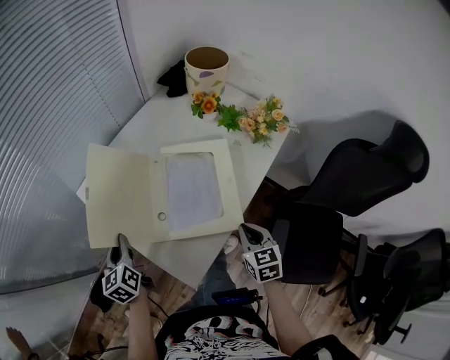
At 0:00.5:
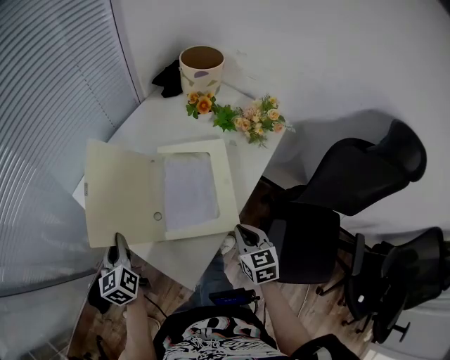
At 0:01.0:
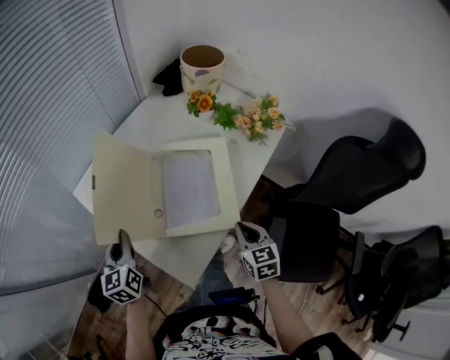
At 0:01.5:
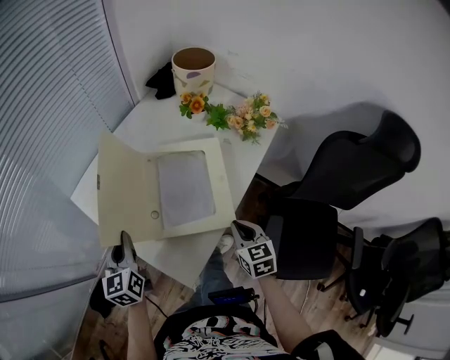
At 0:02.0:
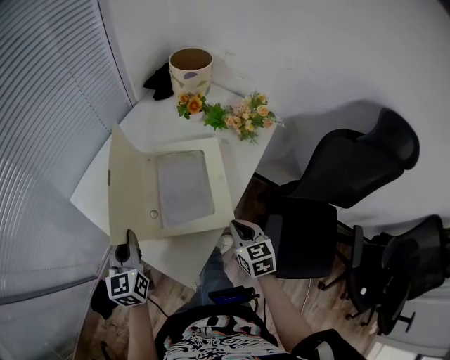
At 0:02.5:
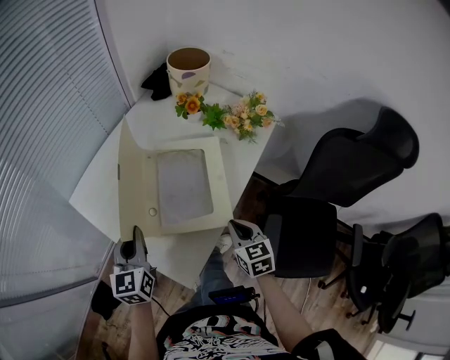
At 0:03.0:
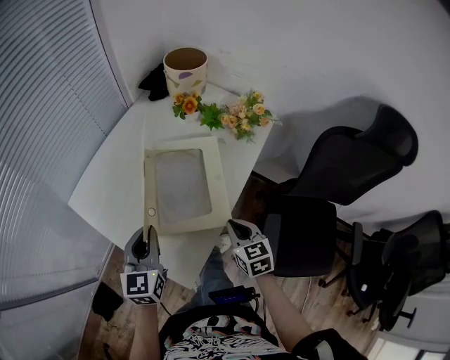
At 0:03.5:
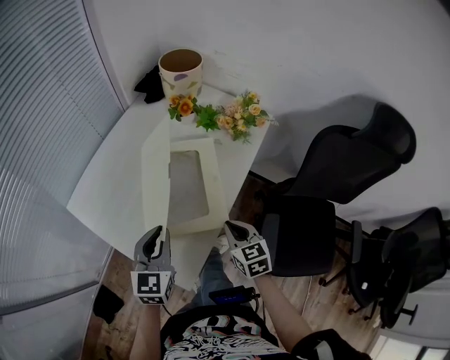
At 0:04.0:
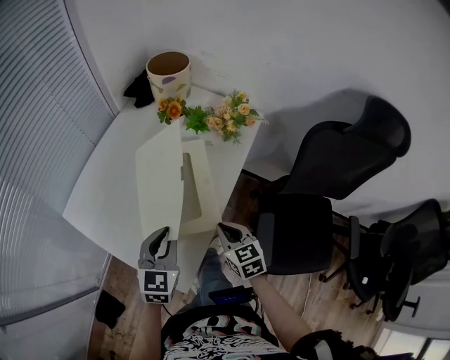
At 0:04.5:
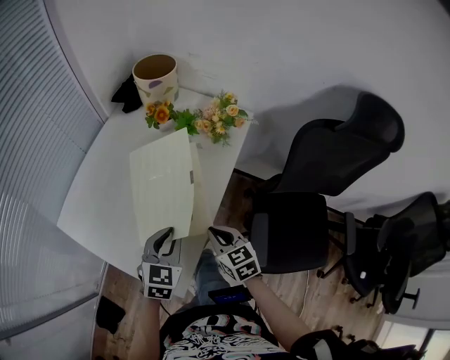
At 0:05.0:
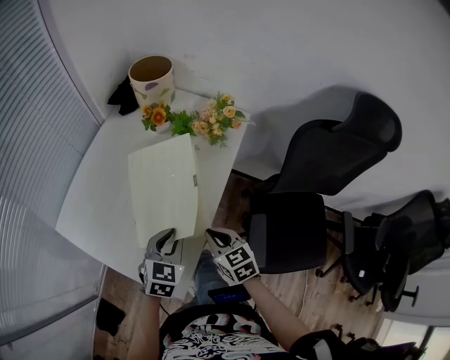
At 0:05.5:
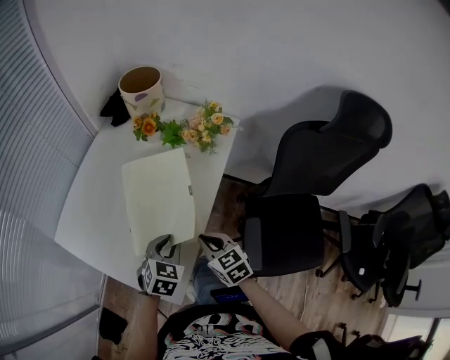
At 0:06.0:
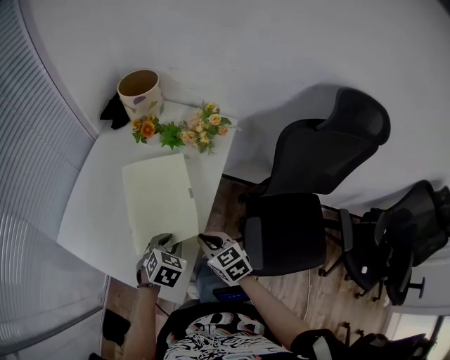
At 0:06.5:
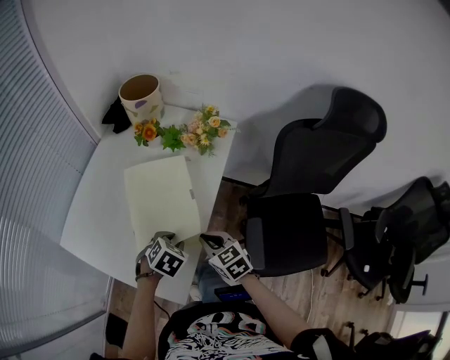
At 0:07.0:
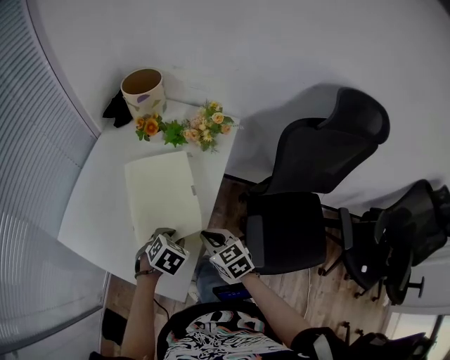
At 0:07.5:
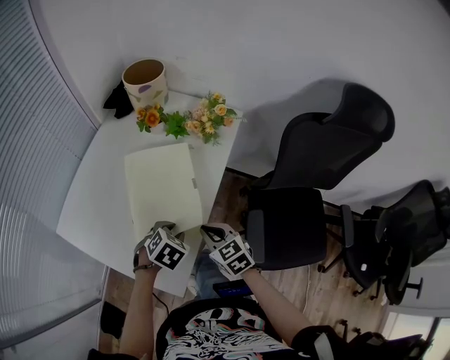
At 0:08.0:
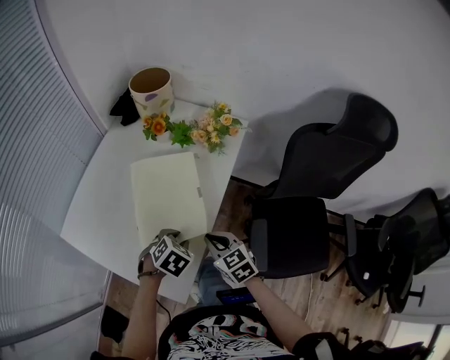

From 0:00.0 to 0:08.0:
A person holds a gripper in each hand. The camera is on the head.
From 0:00.0 to 0:02.0: The left gripper travels to the right by some 10 cm, and rotates some 20 degrees.
From 0:02.0 to 0:04.0: The left gripper goes roughly 15 cm to the right, and rotates about 30 degrees.
From 0:04.0 to 0:06.0: The left gripper goes roughly 10 cm downward and to the right, and angles its fingers downward, by some 30 degrees.
From 0:06.0 to 0:08.0: The grippers stay close to where they were, moving slightly.

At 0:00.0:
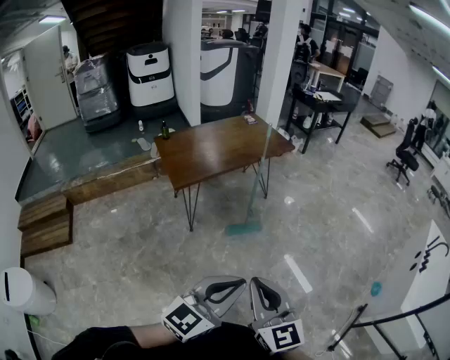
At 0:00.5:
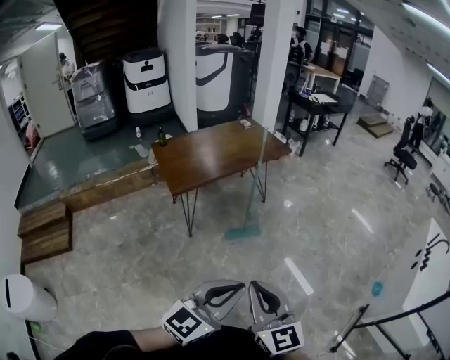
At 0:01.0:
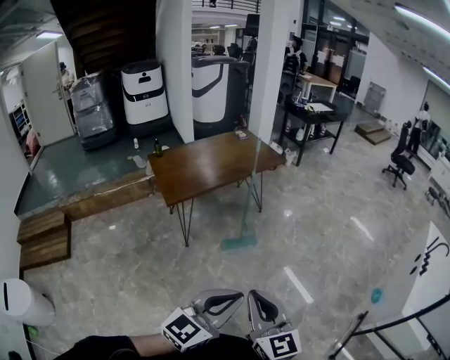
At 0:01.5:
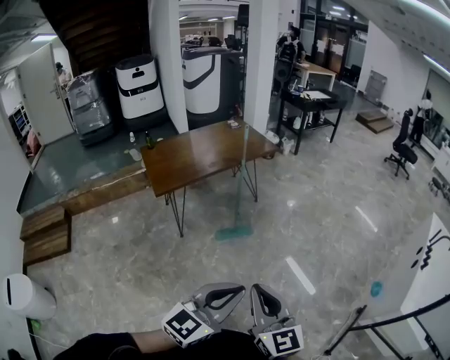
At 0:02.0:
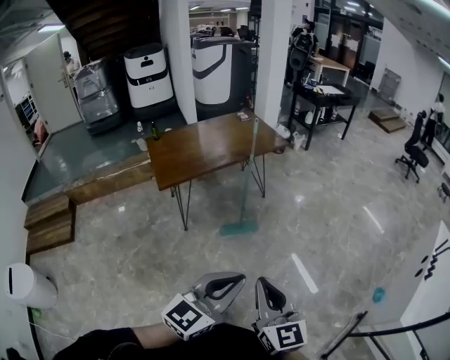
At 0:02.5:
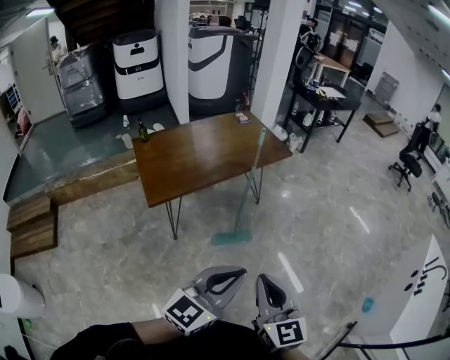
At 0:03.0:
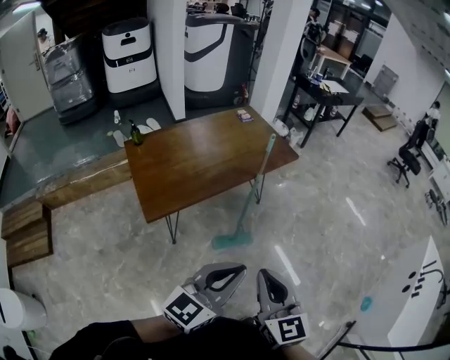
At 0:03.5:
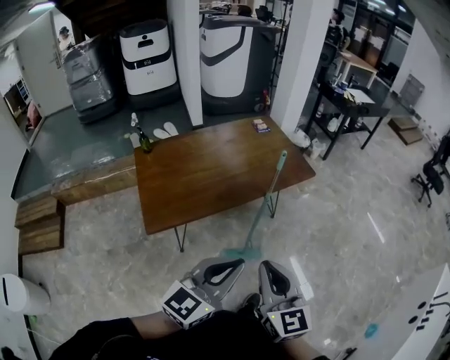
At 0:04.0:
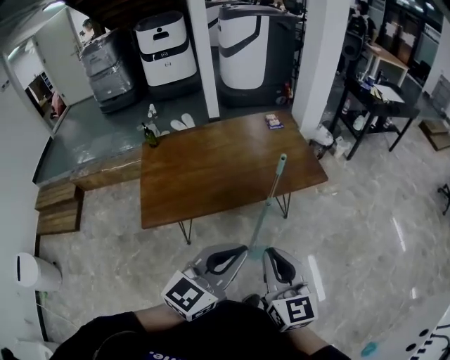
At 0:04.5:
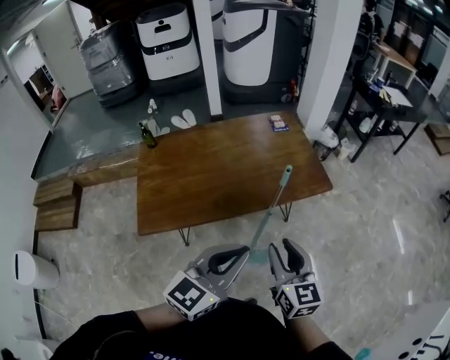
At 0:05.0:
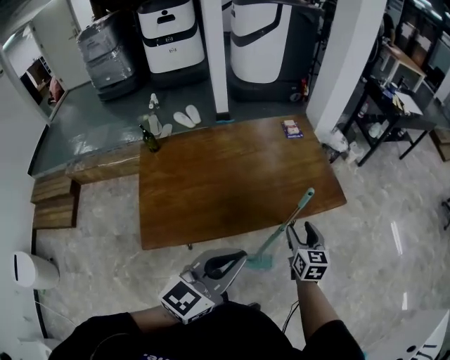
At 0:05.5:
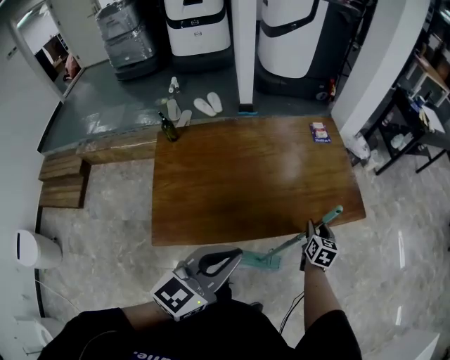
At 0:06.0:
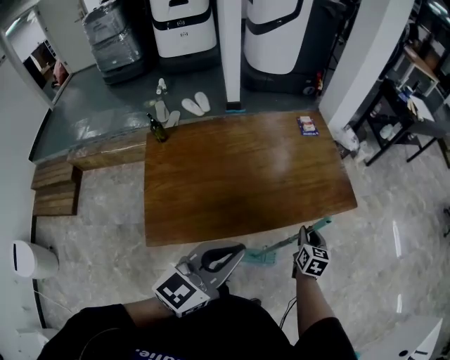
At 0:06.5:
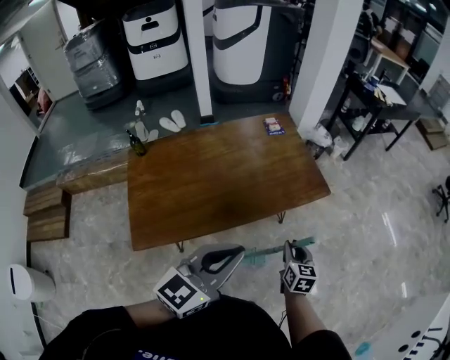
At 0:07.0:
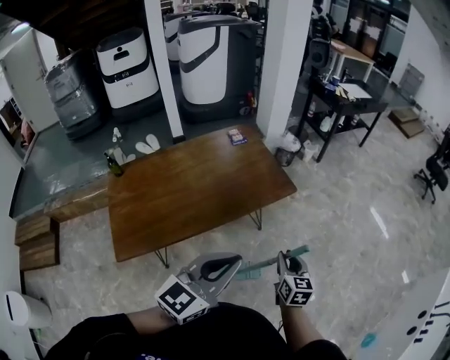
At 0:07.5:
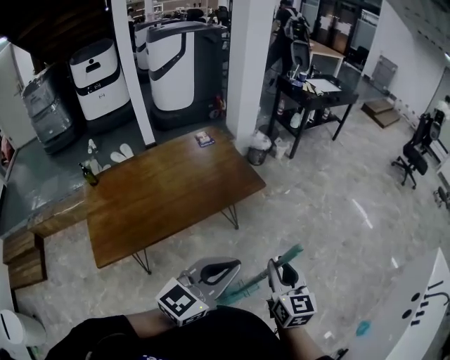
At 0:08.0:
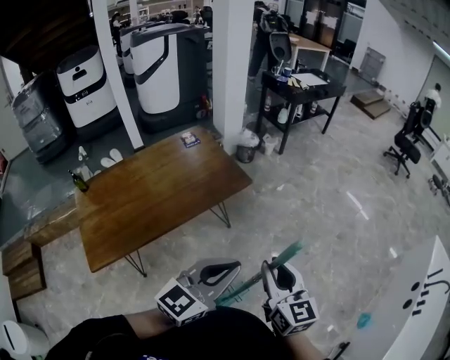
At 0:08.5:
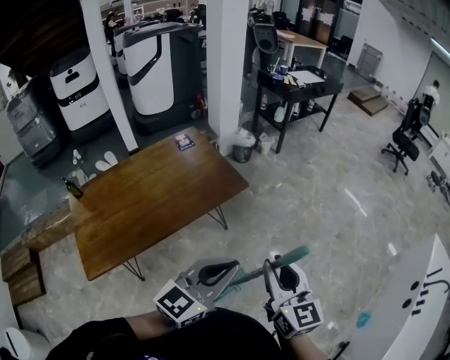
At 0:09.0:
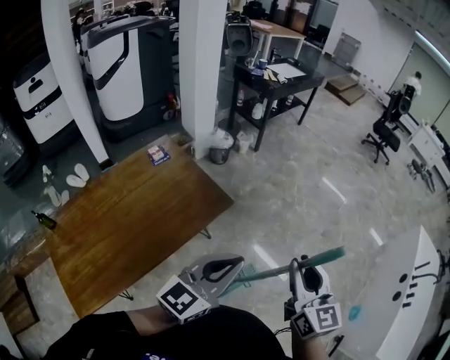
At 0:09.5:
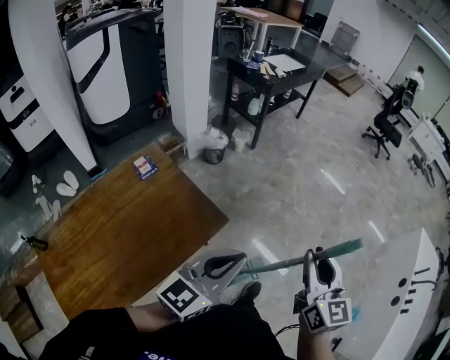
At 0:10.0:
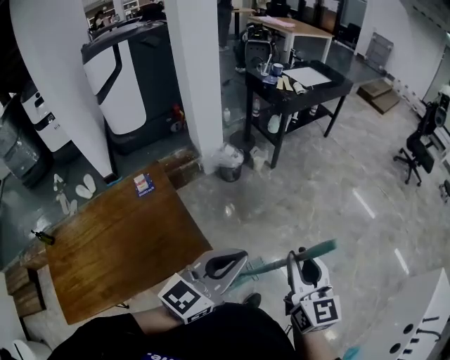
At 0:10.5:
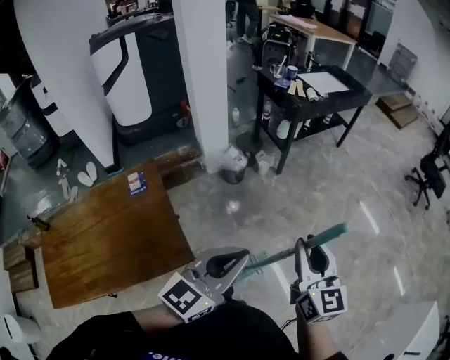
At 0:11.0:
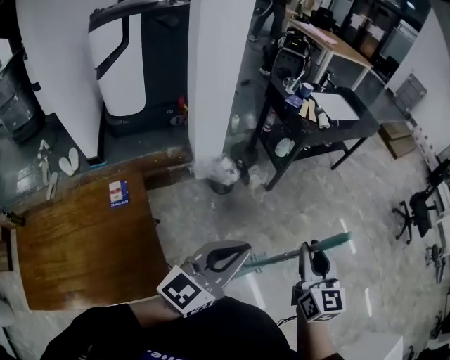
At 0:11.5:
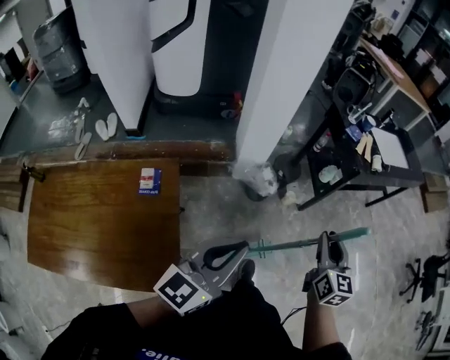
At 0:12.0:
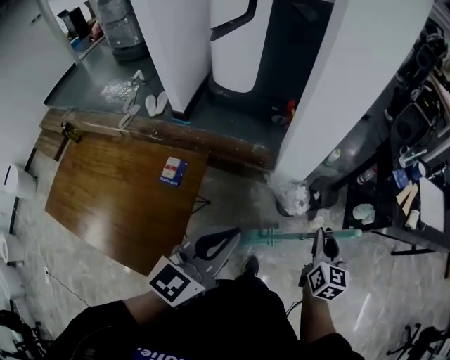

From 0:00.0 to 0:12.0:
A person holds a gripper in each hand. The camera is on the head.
From 0:00.0 to 0:02.0: The two grippers go about 15 cm to the right and forward.
From 0:02.0 to 0:04.0: Both grippers are carried forward, about 50 cm.
From 0:04.0 to 0:06.0: The right gripper moves forward and downward, about 40 cm, angles its fingers downward, by about 30 degrees, and opens and closes again, while the left gripper shifts approximately 20 cm to the left and forward.
From 0:06.0 to 0:08.0: The right gripper shifts roughly 40 cm to the right, upward and backward, and rotates about 30 degrees, while the left gripper shifts some 35 cm to the right, and rotates about 30 degrees.
From 0:08.0 to 0:10.0: The two grippers travel together, forward, some 50 cm.
From 0:10.0 to 0:12.0: The two grippers travel together, approximately 50 cm. The left gripper changes its angle by about 50 degrees. The right gripper swivels some 30 degrees.

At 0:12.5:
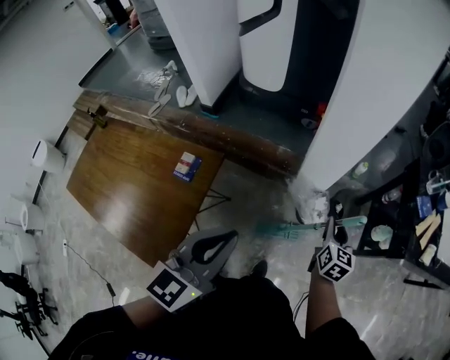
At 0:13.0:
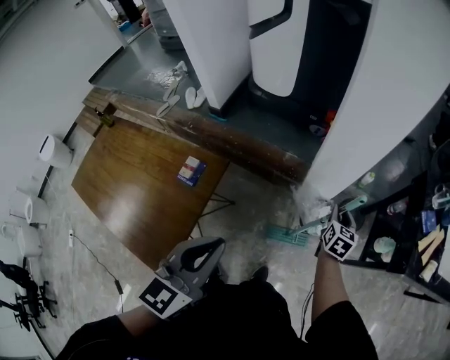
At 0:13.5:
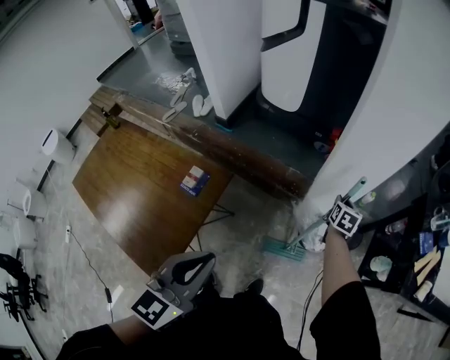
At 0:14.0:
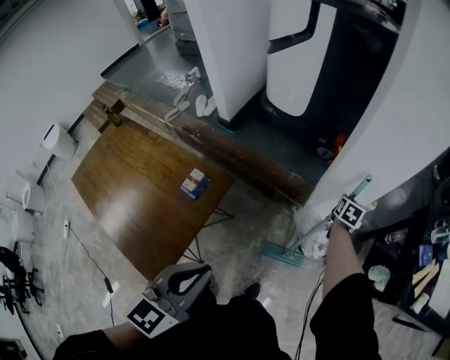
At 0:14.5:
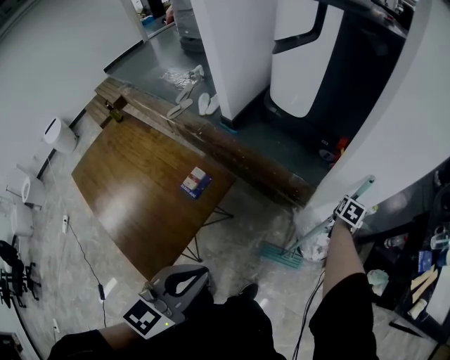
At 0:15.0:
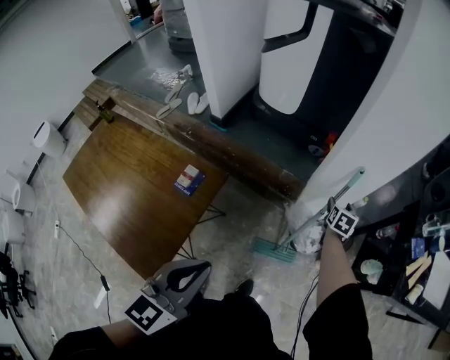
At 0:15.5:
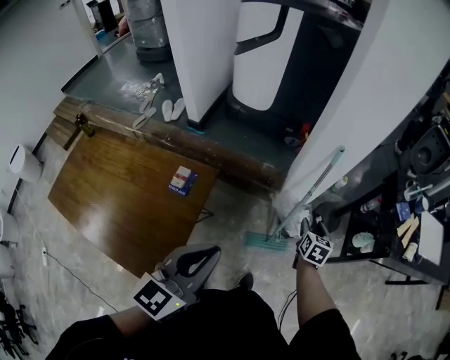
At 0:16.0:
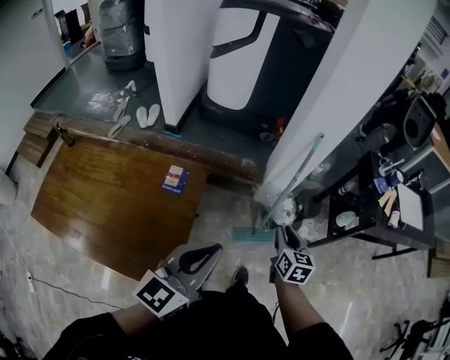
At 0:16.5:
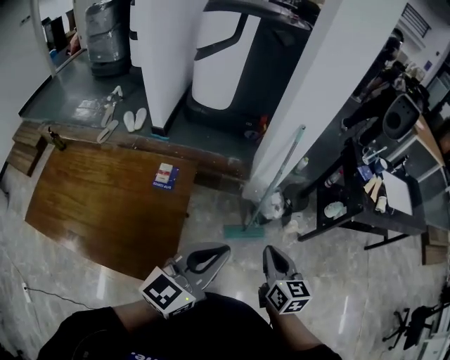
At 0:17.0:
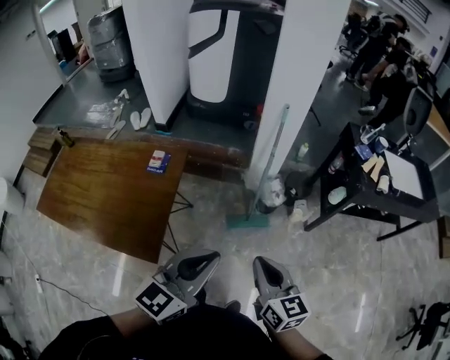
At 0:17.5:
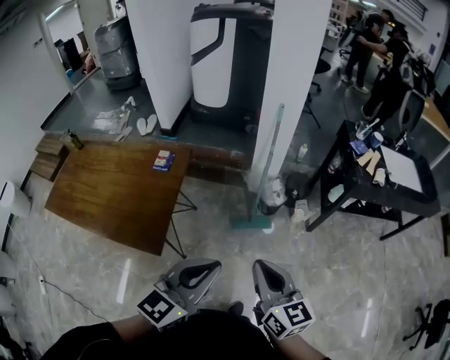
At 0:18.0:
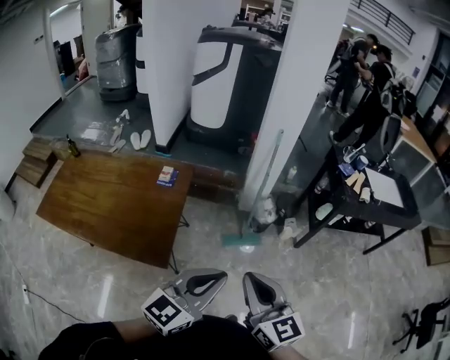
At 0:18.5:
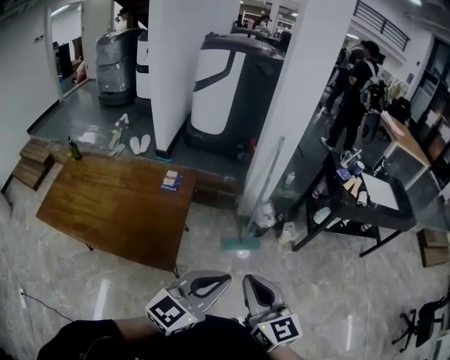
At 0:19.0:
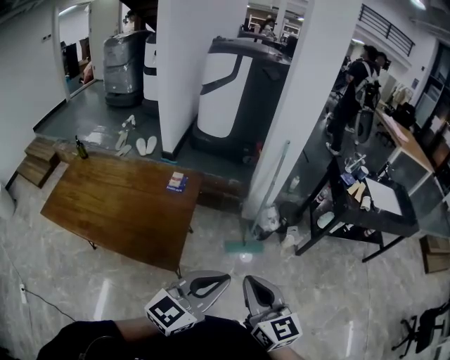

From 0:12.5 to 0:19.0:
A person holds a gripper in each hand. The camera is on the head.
From 0:12.5 to 0:14.5: The left gripper goes some 5 cm to the left, while the right gripper heads forward, covering approximately 25 cm, and changes its angle by some 20 degrees.
From 0:14.5 to 0:17.0: The right gripper goes approximately 70 cm backward, tips its fingers upward by about 30 degrees, and opens, then closes once more. The left gripper heads backward and to the right, covering roughly 25 cm, and swivels about 30 degrees.
From 0:17.0 to 0:19.0: The left gripper shifts some 15 cm backward and to the left, while the right gripper is displaced backward, to the left and upward by about 20 cm.
